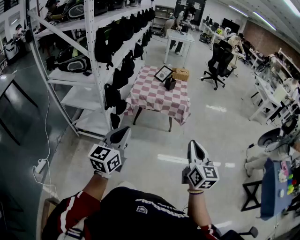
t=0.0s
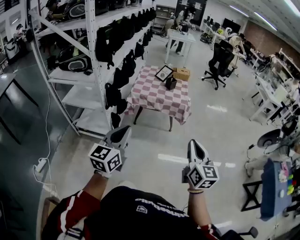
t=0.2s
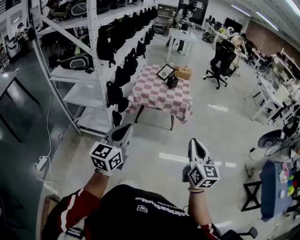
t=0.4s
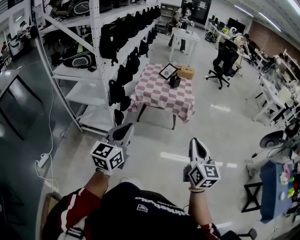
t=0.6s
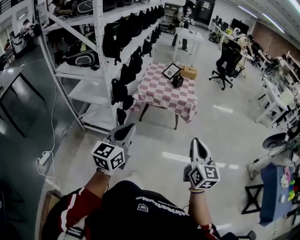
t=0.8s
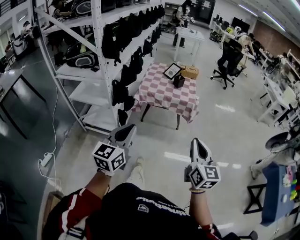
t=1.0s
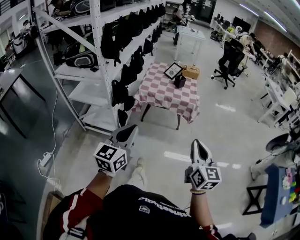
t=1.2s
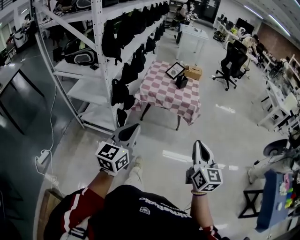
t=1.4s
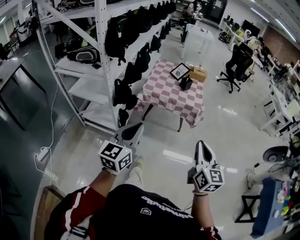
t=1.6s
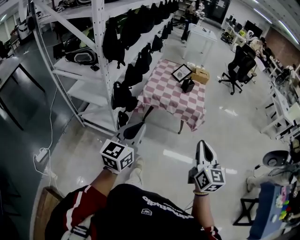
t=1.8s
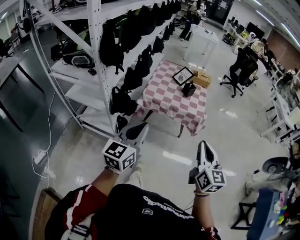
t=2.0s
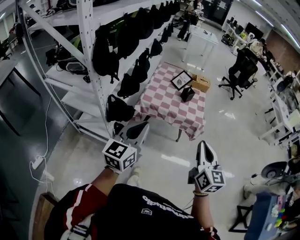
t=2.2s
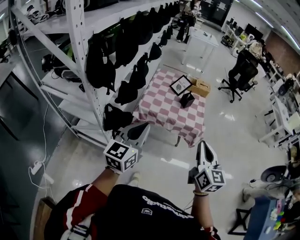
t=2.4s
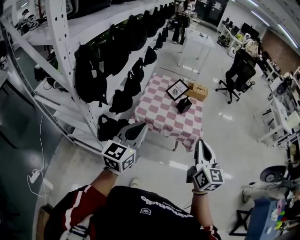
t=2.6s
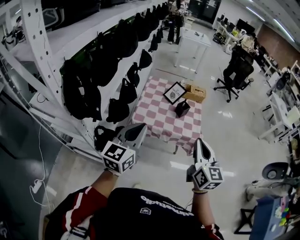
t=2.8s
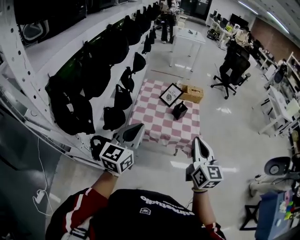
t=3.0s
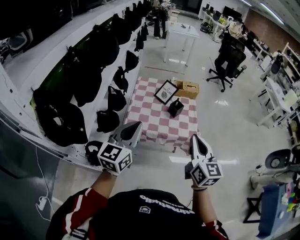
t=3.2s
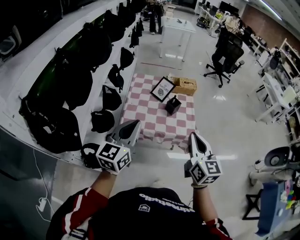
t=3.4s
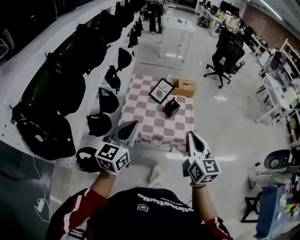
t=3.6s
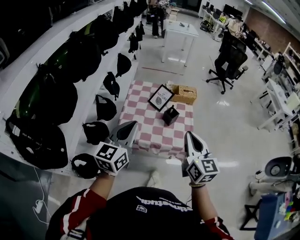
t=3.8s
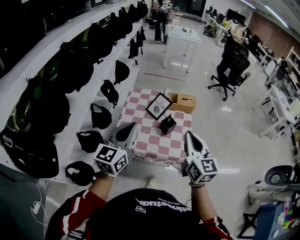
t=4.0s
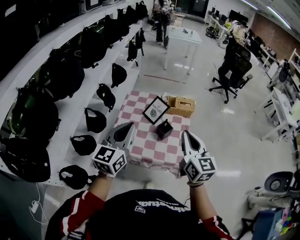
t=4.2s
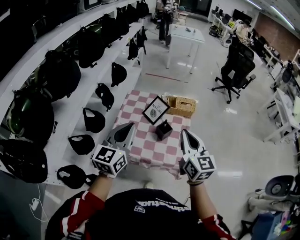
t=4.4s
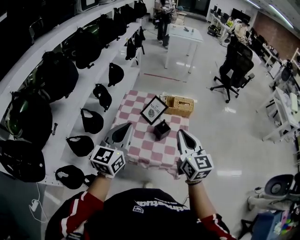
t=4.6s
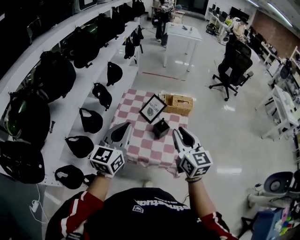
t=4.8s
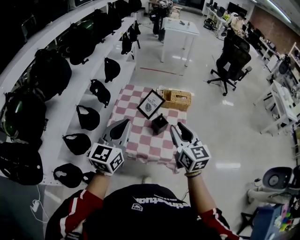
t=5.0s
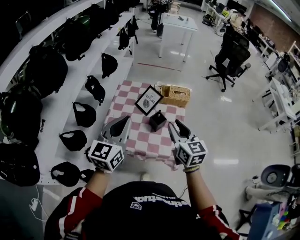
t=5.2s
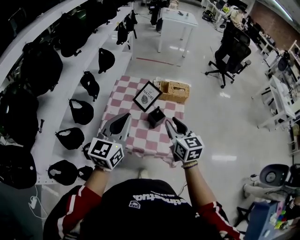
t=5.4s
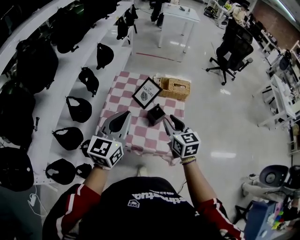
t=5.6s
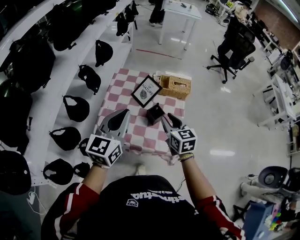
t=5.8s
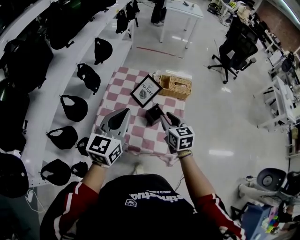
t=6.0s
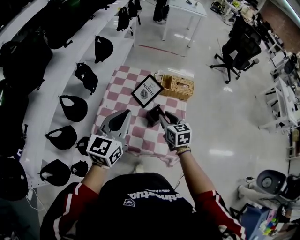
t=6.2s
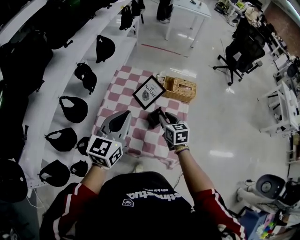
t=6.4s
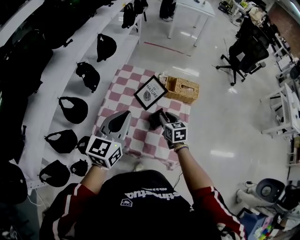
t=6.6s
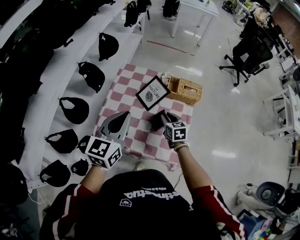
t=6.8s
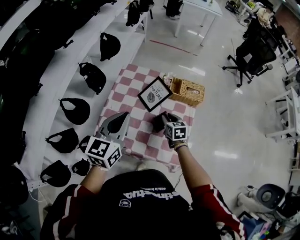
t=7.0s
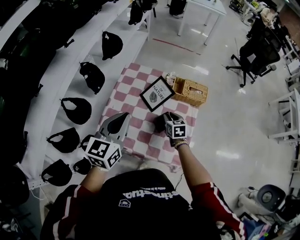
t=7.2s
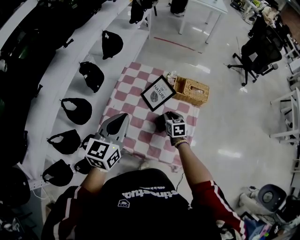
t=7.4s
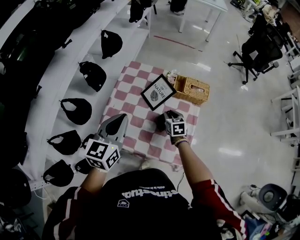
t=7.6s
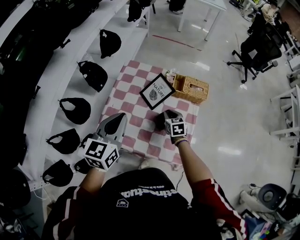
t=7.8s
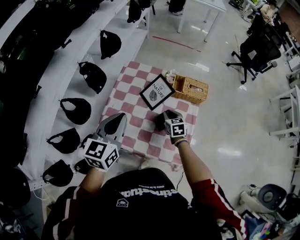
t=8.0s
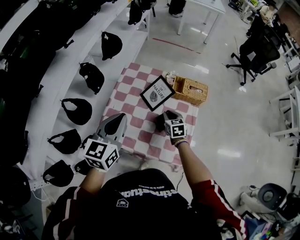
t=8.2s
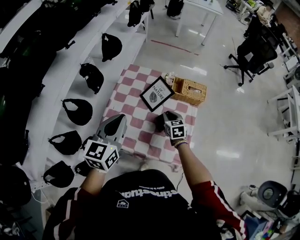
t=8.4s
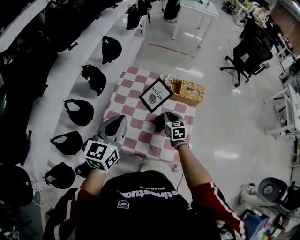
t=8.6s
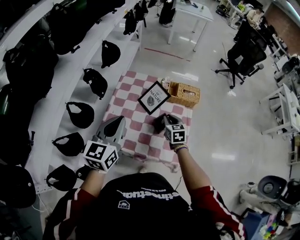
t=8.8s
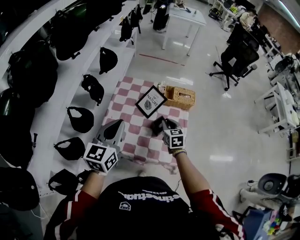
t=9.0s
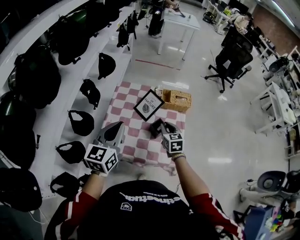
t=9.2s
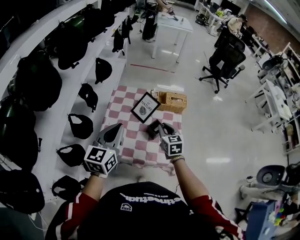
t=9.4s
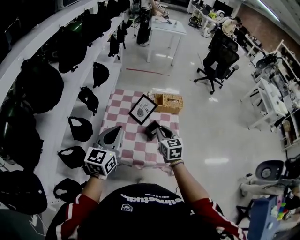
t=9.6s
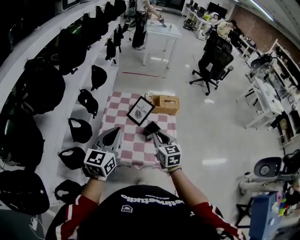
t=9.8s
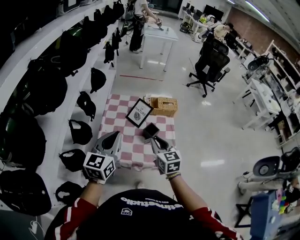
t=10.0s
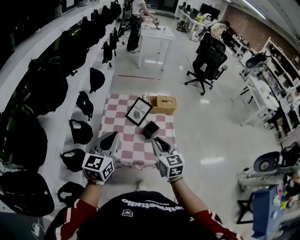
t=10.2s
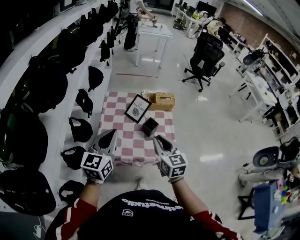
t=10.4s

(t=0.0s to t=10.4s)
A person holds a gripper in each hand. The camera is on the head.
t=0.0s - t=1.4s: The grippers make only small movements.
t=1.4s - t=3.0s: The two grippers travel together, forward, roughly 40 cm.
t=3.0s - t=4.4s: The left gripper goes about 25 cm forward and to the right. Meanwhile the right gripper goes approximately 25 cm forward.
t=4.4s - t=6.0s: The left gripper moves forward and downward, roughly 10 cm. The right gripper goes some 20 cm downward and forward, swivels approximately 20 degrees, and opens up.
t=6.0s - t=7.4s: The left gripper travels forward and downward by some 10 cm. The right gripper heads downward and forward, covering approximately 20 cm.
t=7.4s - t=9.0s: The right gripper heads upward and backward, covering about 15 cm. Meanwhile the left gripper moves some 5 cm.
t=9.0s - t=10.4s: The right gripper shifts roughly 25 cm backward and upward, and changes its angle by some 20 degrees. The left gripper heads backward, covering about 10 cm.

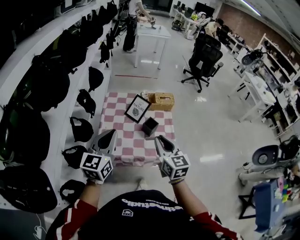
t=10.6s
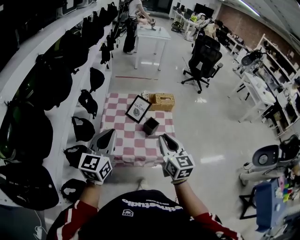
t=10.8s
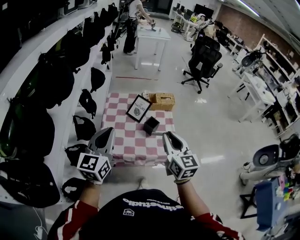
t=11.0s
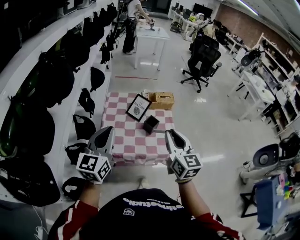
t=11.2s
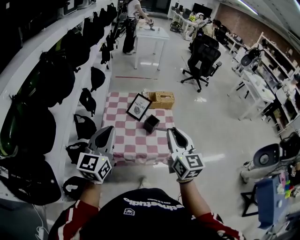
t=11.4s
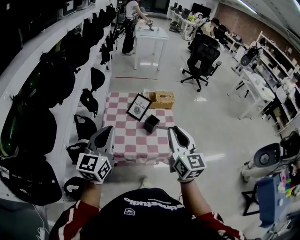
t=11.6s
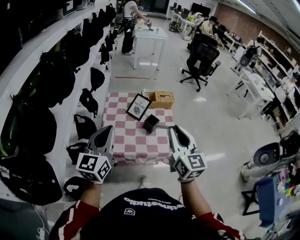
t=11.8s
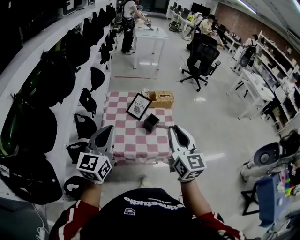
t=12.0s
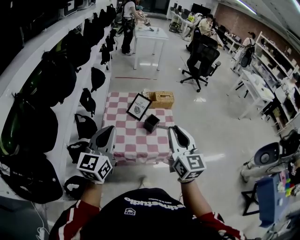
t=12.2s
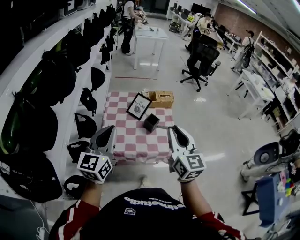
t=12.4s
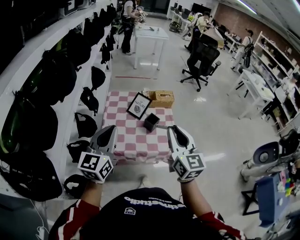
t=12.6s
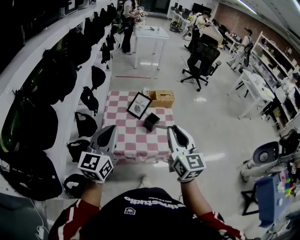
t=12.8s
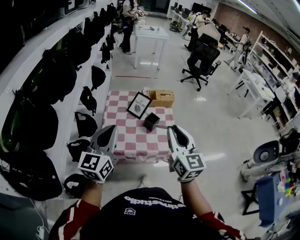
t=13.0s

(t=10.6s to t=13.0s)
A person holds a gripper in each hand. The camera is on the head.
t=10.6s - t=11.8s: The right gripper is displaced upward by approximately 10 cm, while the left gripper changes place by about 5 cm.
t=11.8s - t=13.0s: The grippers move only a little.

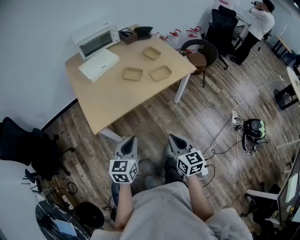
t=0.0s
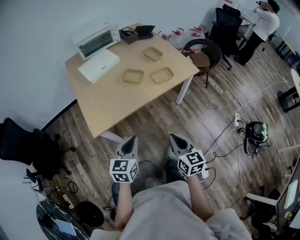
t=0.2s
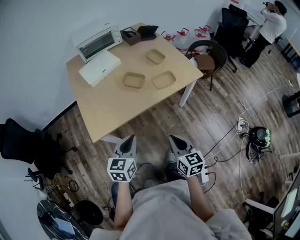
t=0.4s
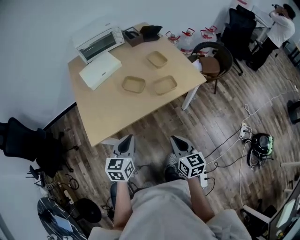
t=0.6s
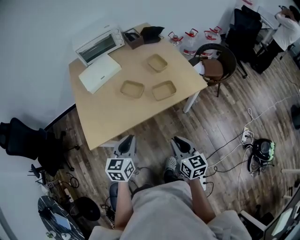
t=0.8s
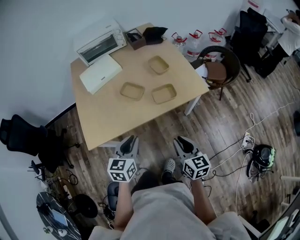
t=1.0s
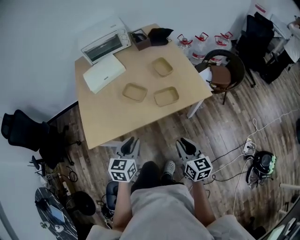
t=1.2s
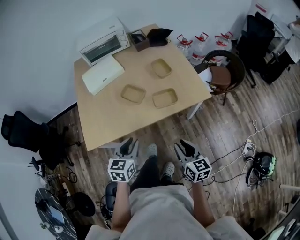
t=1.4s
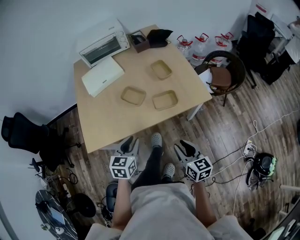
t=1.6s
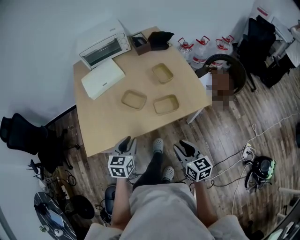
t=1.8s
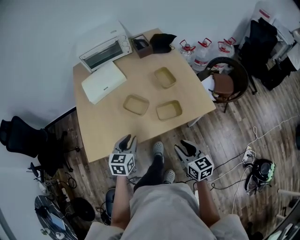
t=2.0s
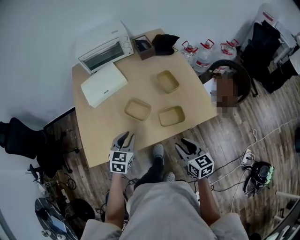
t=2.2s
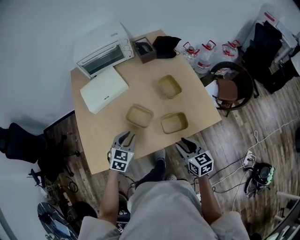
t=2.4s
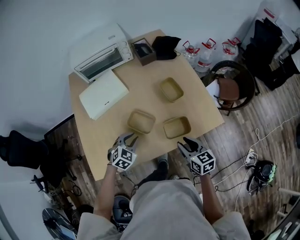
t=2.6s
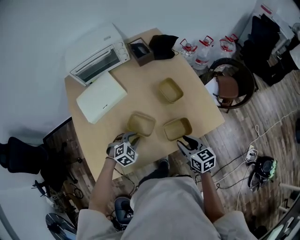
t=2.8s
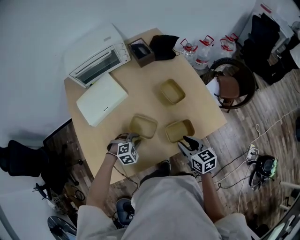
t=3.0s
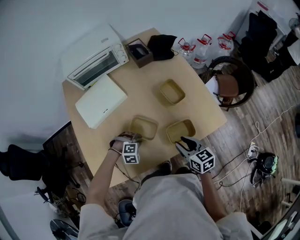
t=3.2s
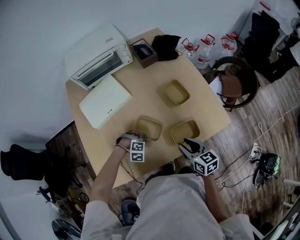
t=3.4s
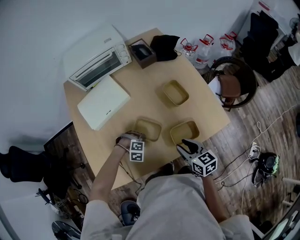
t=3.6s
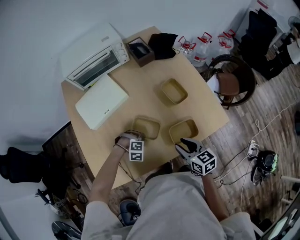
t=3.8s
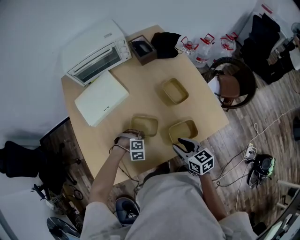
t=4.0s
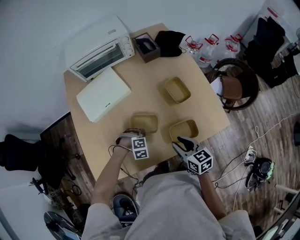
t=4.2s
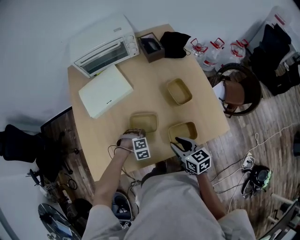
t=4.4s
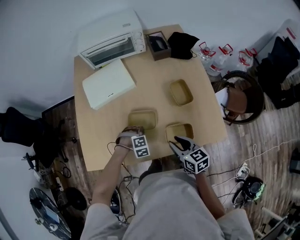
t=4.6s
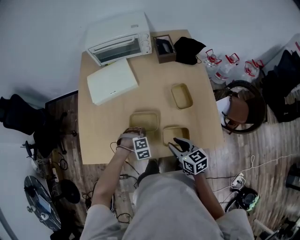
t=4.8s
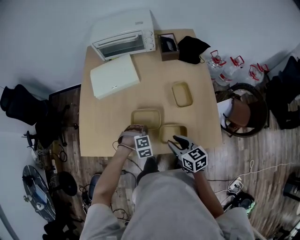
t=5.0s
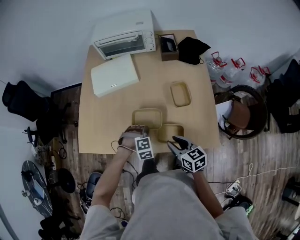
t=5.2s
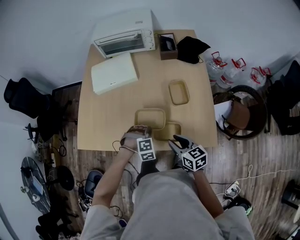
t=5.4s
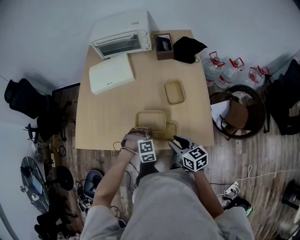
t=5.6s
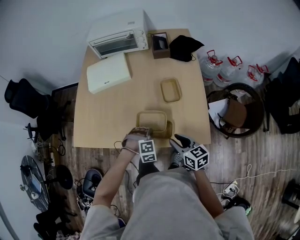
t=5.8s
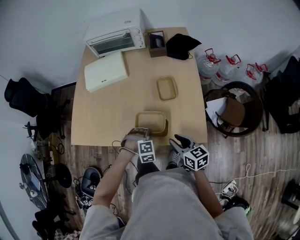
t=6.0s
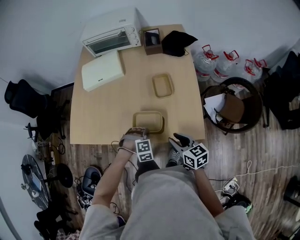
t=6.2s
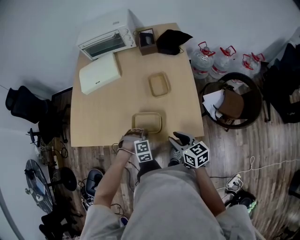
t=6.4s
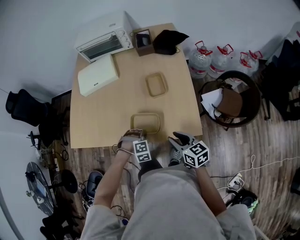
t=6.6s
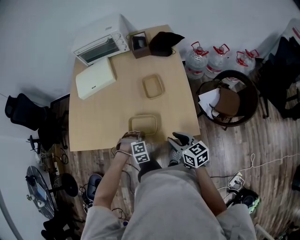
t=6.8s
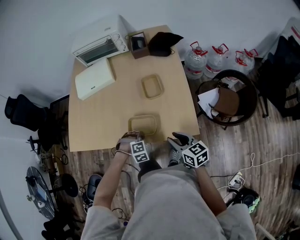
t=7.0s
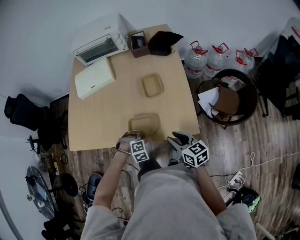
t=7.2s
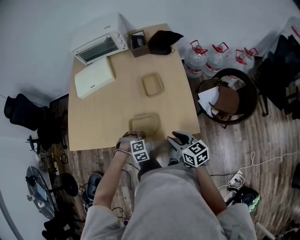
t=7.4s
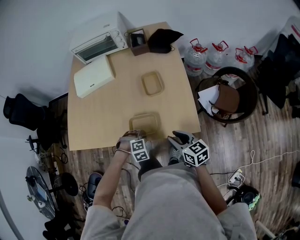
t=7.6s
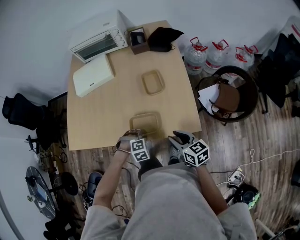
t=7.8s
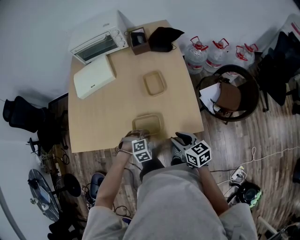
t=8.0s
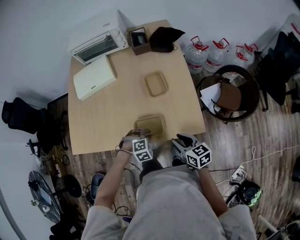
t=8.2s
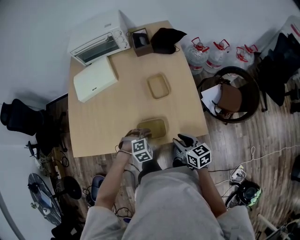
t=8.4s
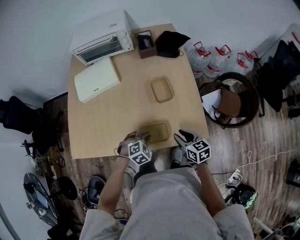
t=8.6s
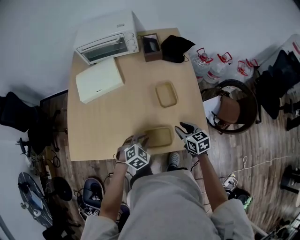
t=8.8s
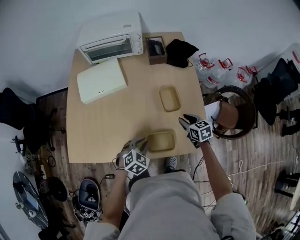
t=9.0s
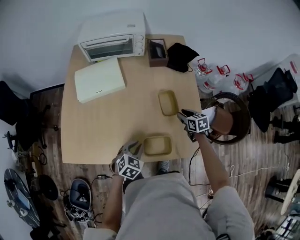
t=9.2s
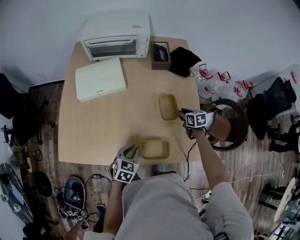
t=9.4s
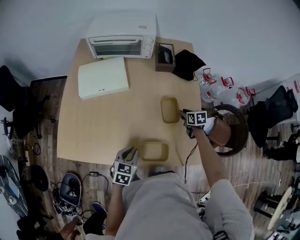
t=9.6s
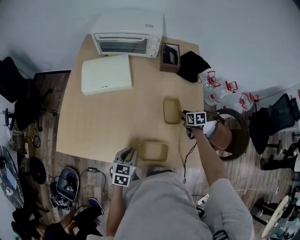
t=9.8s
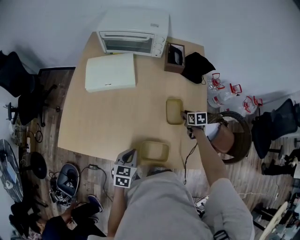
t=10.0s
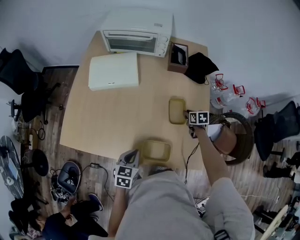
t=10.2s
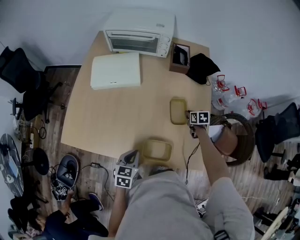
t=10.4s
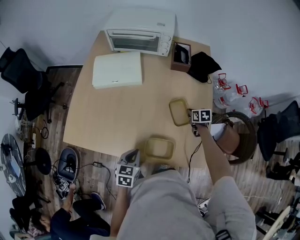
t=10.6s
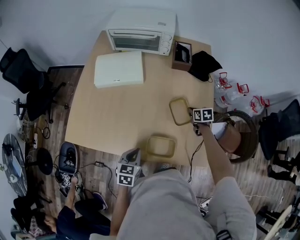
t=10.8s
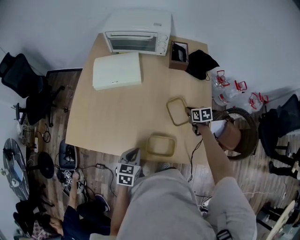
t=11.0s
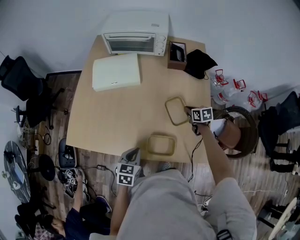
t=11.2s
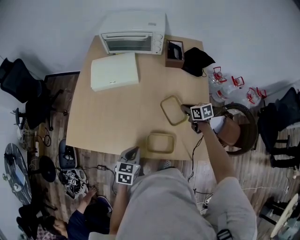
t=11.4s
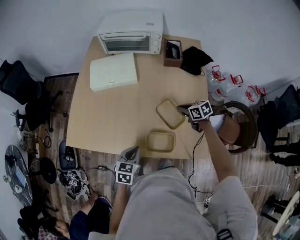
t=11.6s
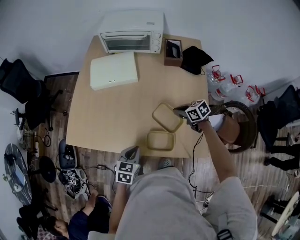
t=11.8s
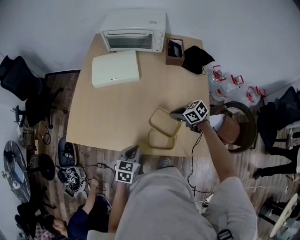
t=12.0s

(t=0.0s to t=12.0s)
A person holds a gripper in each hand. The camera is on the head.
t=0.0s - t=1.6s: Both grippers travel together forward and to the right, approximately 30 cm. The right gripper opens its fingers, while the left gripper opens.
t=1.6s - t=3.0s: The left gripper goes approximately 30 cm forward and downward, and twists about 60 degrees clockwise, seen from behind, while the right gripper travels forward by roughly 25 cm.
t=3.0s - t=4.4s: The left gripper is displaced downward by some 5 cm.
t=4.4s - t=6.0s: Both grippers travel together to the right and backward, approximately 20 cm.
t=6.0s - t=7.6s: The left gripper heads backward, covering some 5 cm. Meanwhile the right gripper moves about 5 cm.
t=7.6s - t=9.0s: The left gripper goes about 15 cm forward, upward and to the left, and turns by approximately 40 degrees. Meanwhile the right gripper heads forward, covering about 20 cm.
t=9.0s - t=10.4s: The right gripper is displaced forward and downward by about 15 cm, while the left gripper moves some 5 cm, and twists approximately 40 degrees counterclockwise, seen from behind.
t=10.4s - t=12.0s: The right gripper shifts some 20 cm to the left, upward and backward, and swivels approximately 40 degrees.
